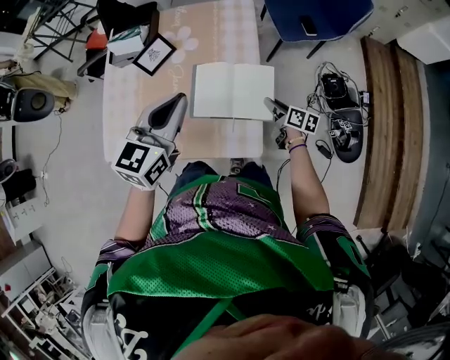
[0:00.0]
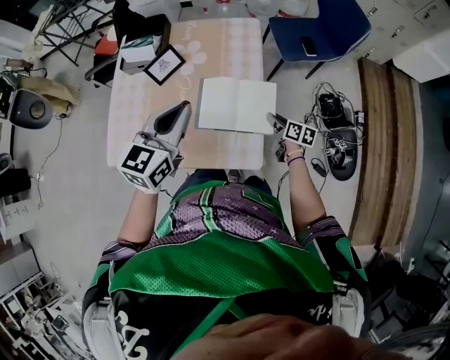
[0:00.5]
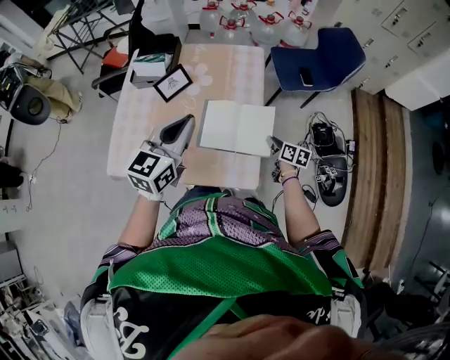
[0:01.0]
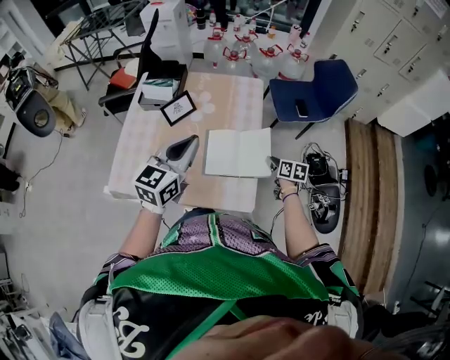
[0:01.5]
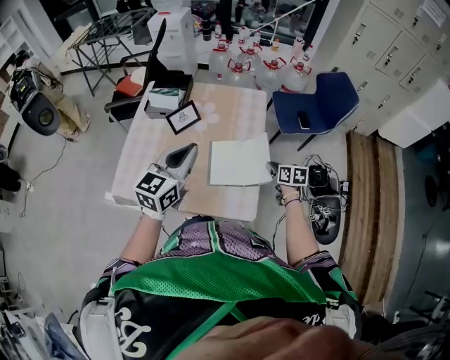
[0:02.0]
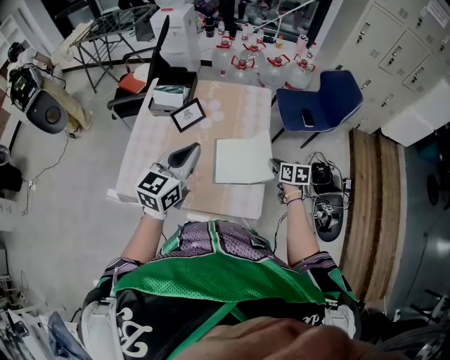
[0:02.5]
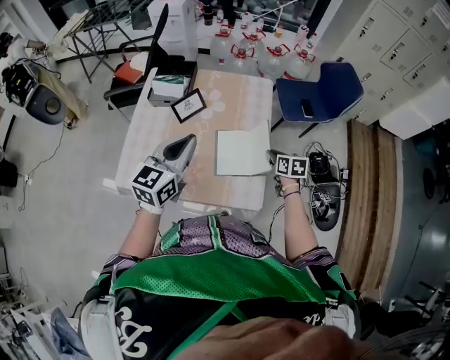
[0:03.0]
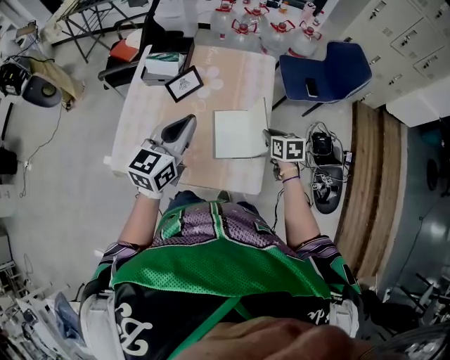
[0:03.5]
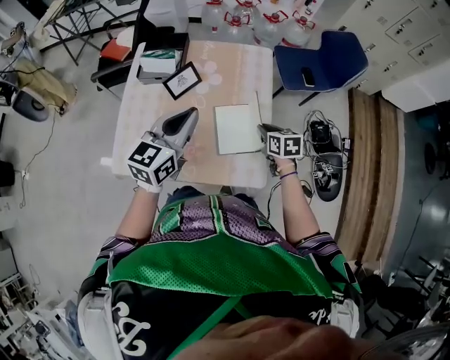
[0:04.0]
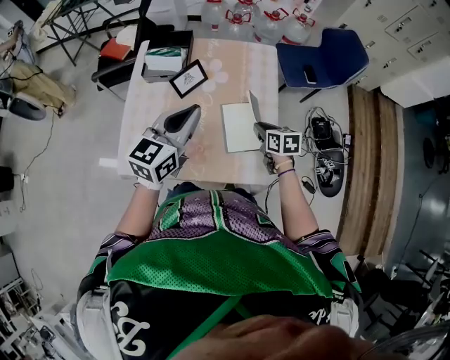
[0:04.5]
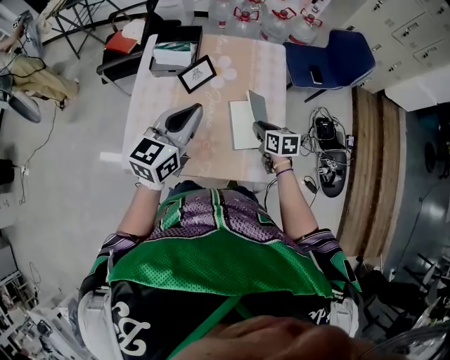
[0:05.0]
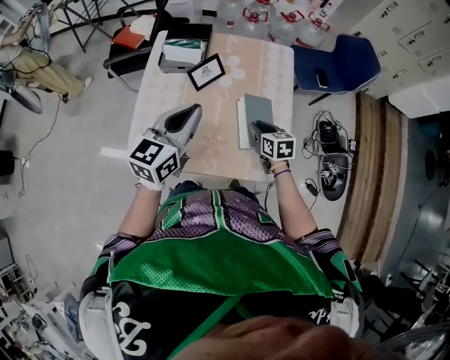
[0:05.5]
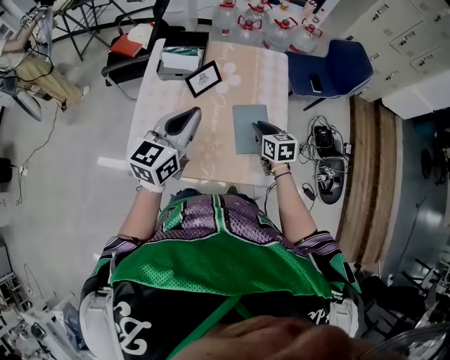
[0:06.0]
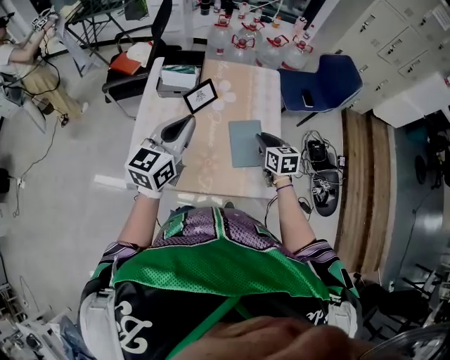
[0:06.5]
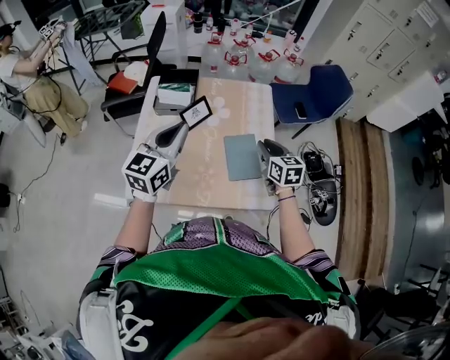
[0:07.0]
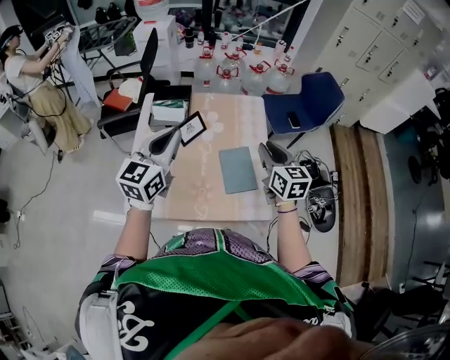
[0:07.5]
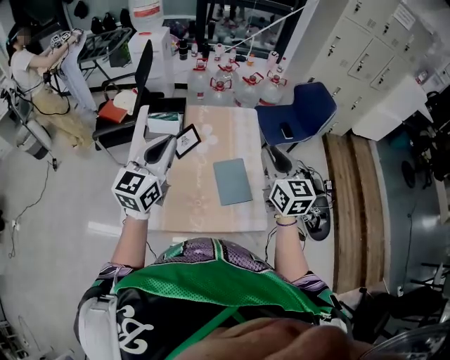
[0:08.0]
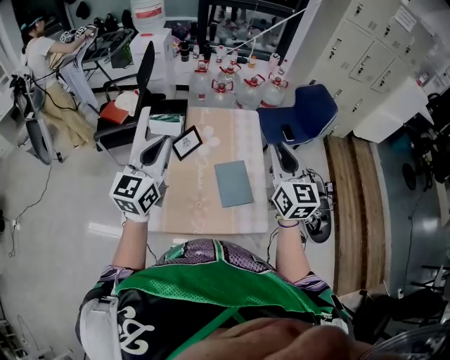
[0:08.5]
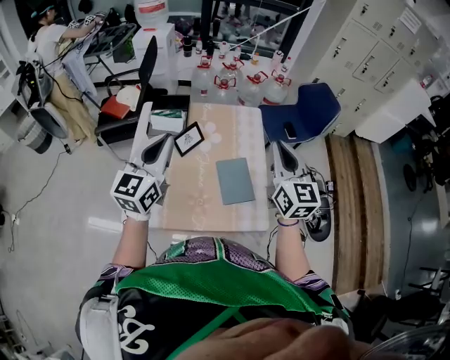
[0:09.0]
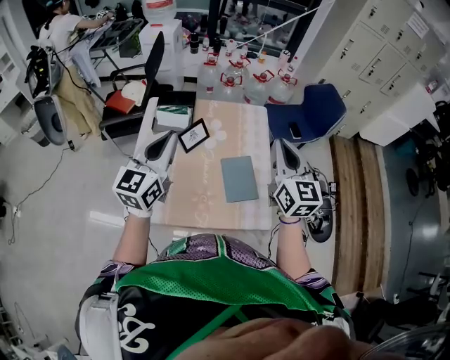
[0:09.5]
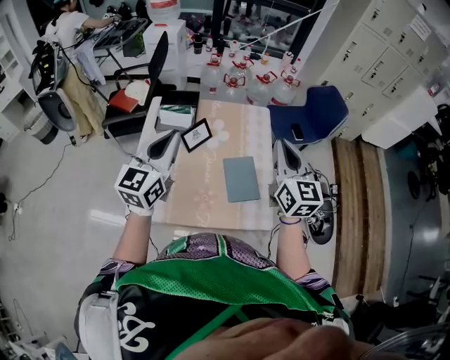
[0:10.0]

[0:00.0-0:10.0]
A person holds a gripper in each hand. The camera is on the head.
0:00.0 to 0:02.0: The right gripper moves upward, approximately 10 cm, rotates about 30 degrees, and closes its fingers. The left gripper travels to the left and upward by approximately 10 cm.
0:02.0 to 0:04.0: The right gripper is displaced to the left by some 10 cm; the left gripper shifts by about 5 cm.
0:04.0 to 0:06.0: The two grippers go roughly 10 cm to the left.
0:06.0 to 0:08.0: The left gripper is displaced upward by approximately 10 cm, while the right gripper travels upward by some 25 cm, and swivels approximately 30 degrees.
0:08.0 to 0:10.0: There are only small adjustments of the grippers.

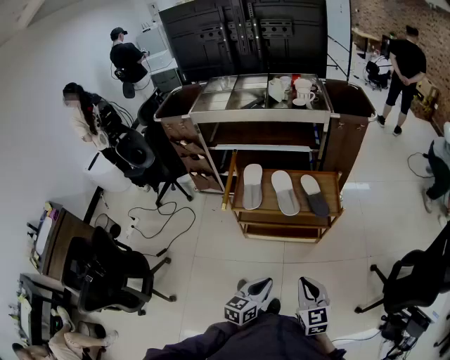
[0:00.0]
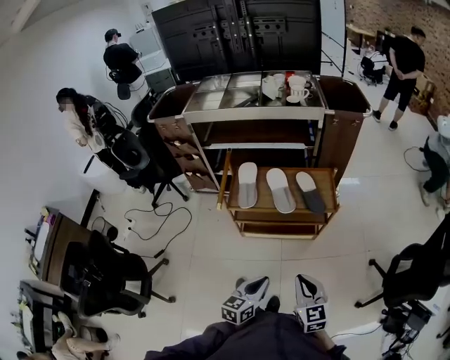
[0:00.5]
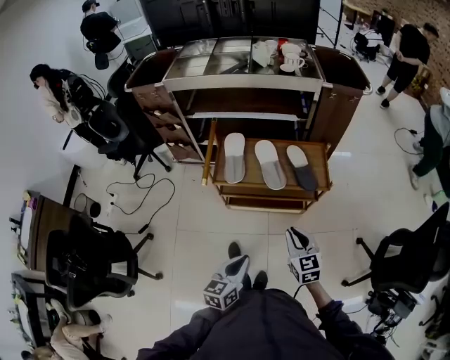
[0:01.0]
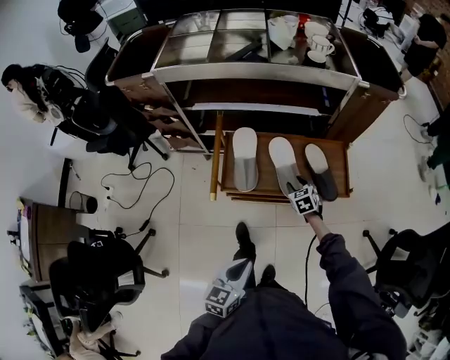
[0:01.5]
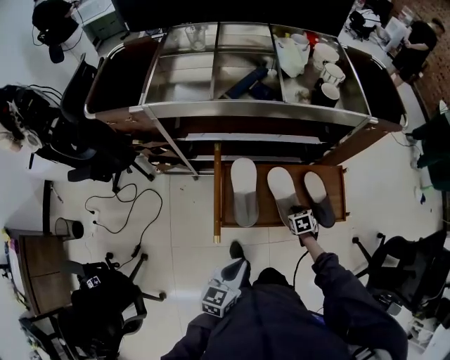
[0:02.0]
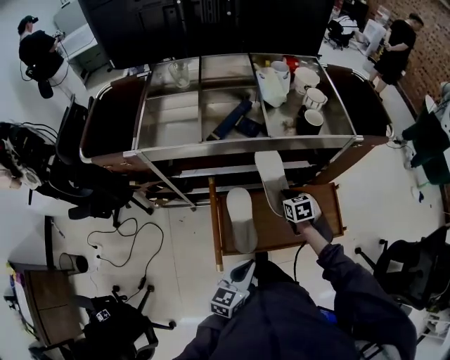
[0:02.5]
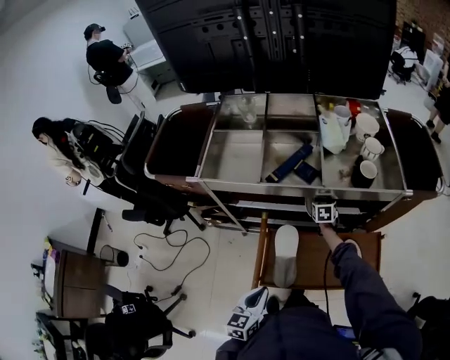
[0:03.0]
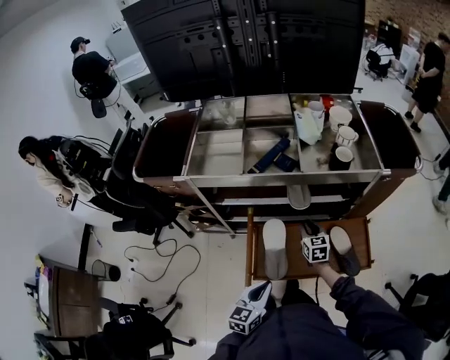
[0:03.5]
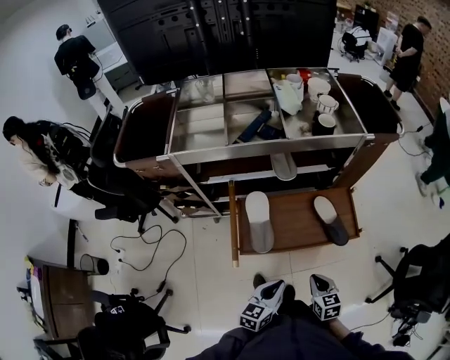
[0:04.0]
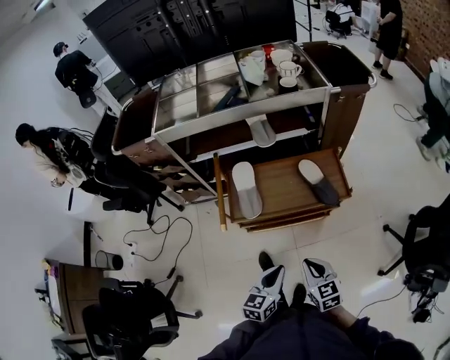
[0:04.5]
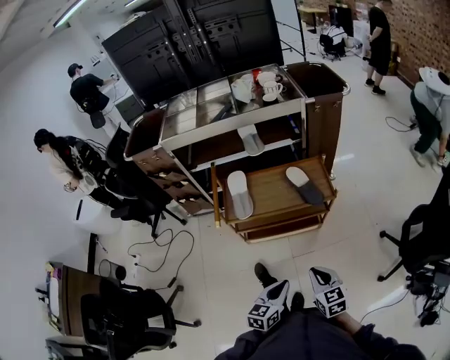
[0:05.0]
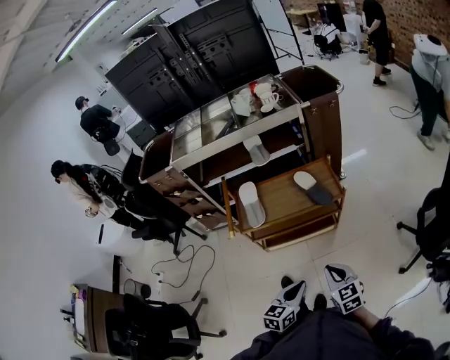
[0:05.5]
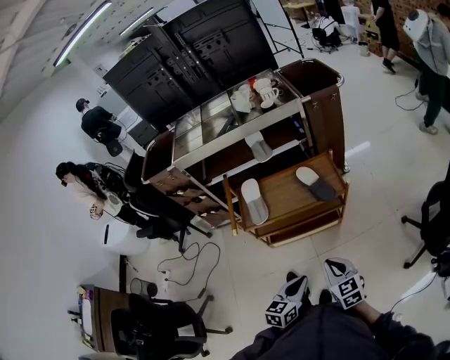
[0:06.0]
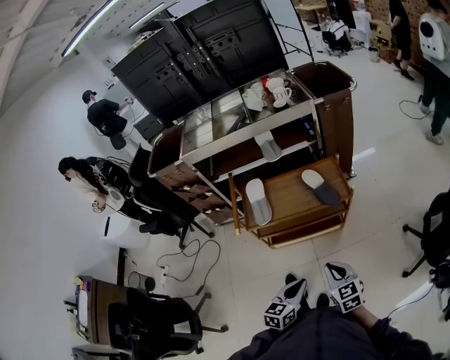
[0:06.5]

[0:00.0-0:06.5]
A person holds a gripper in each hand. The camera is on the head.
0:00.0 to 0:02.0: The left gripper goes roughly 35 cm forward and to the left. Meanwhile the right gripper moves forward and downward, approximately 50 cm, angles its fingers downward, by roughly 50 degrees, and opens and closes again.
0:02.0 to 0:04.5: The right gripper moves backward and upward, roughly 35 cm, and points its fingers roughly 30 degrees further upward. Meanwhile the left gripper travels to the right and backward by some 15 cm.
0:04.5 to 0:06.5: The two grippers go roughly 15 cm backward and to the right.

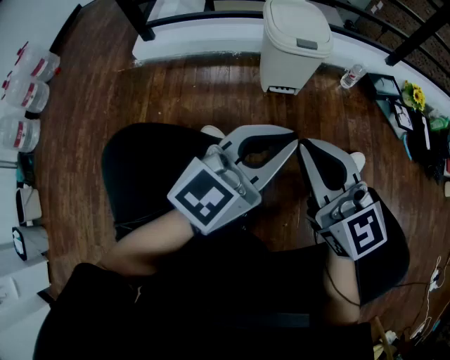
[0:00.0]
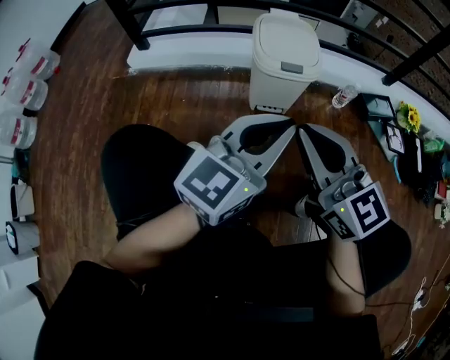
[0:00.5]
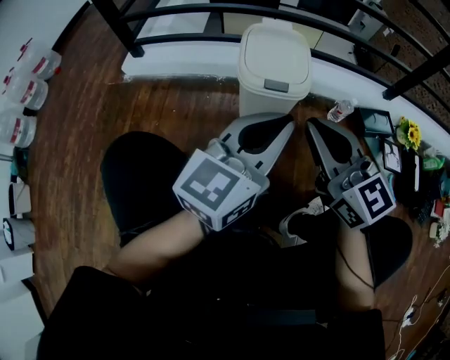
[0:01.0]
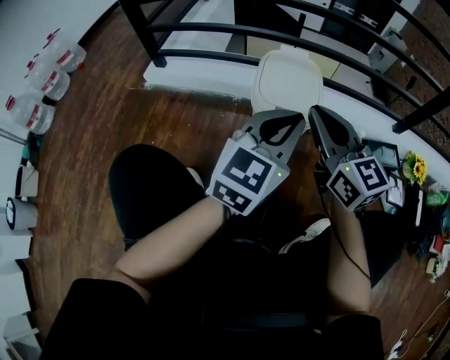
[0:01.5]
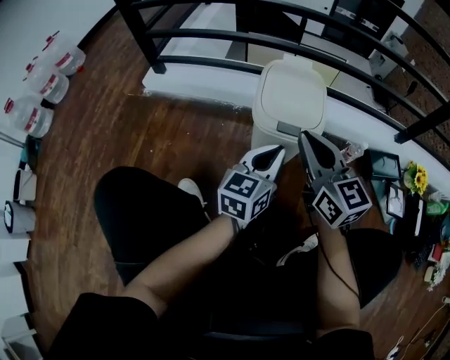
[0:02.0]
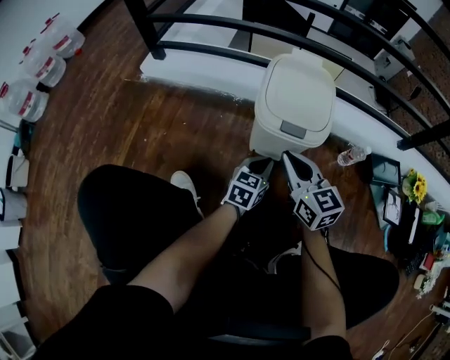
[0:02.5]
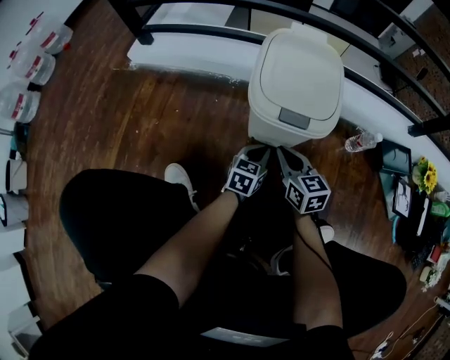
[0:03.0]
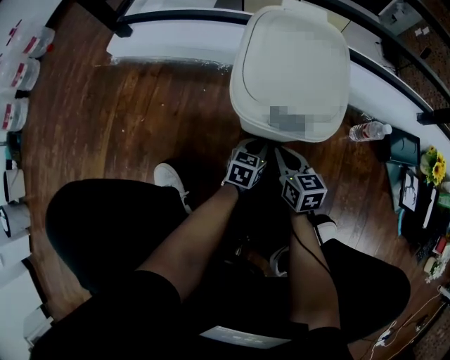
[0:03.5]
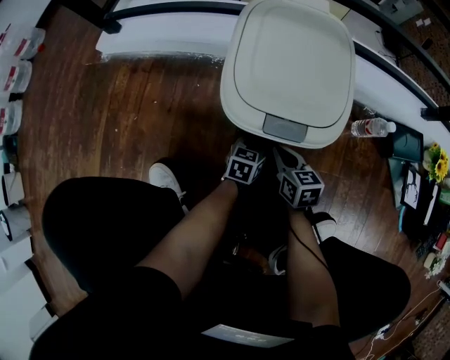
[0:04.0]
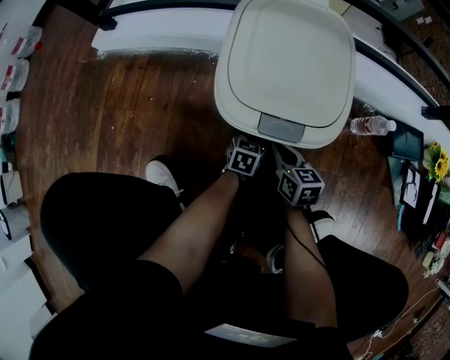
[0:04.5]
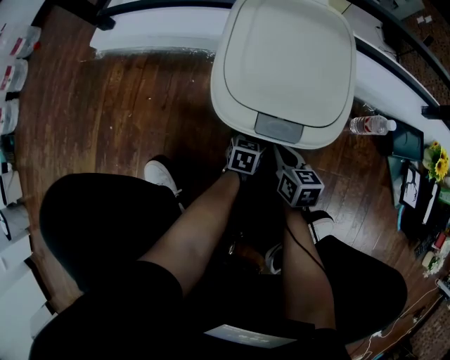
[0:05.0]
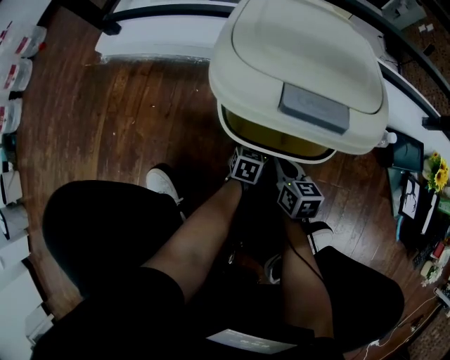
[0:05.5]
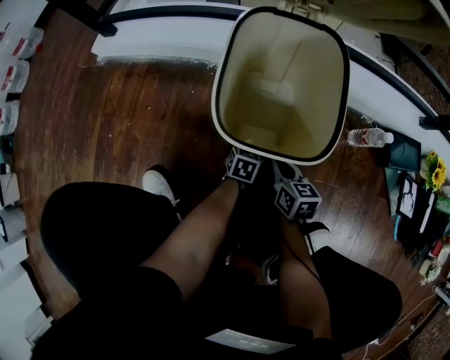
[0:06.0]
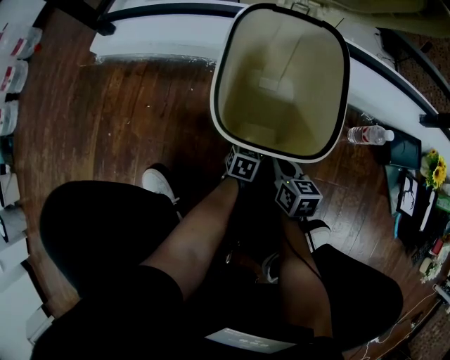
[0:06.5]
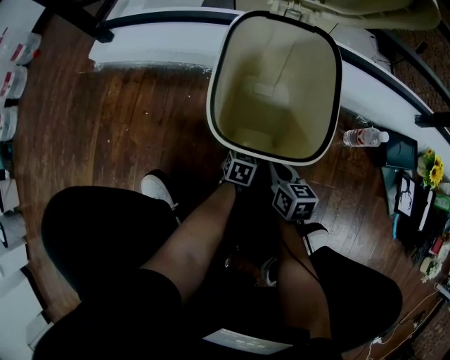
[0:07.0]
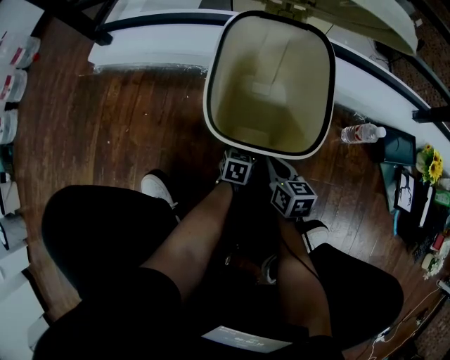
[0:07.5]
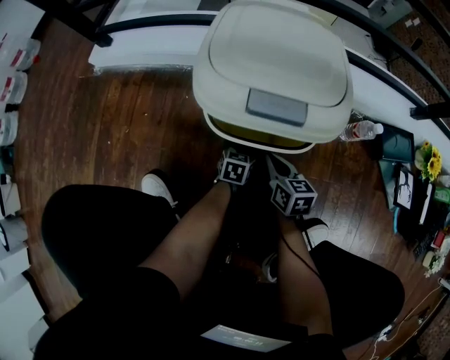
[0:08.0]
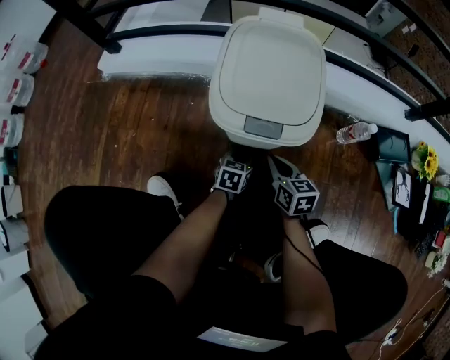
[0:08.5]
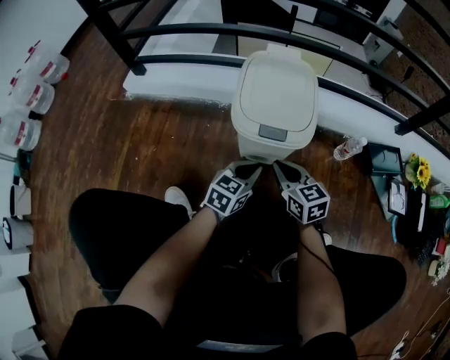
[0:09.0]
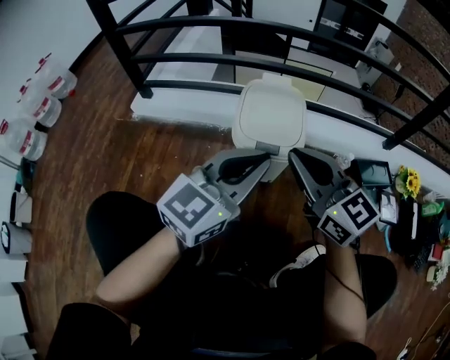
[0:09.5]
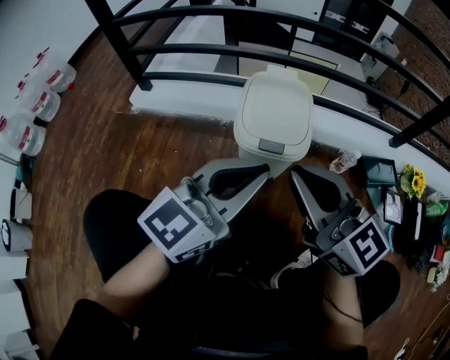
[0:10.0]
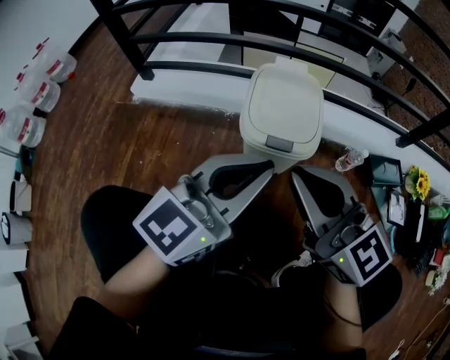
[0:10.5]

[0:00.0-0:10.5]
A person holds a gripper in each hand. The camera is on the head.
0:00.0 to 0:02.0: The two grippers go about 35 cm forward and to the right. The left gripper rotates roughly 30 degrees.
0:02.0 to 0:04.0: The two grippers go about 40 cm downward. The left gripper rotates about 30 degrees; the right gripper points its fingers about 30 degrees further downward.
0:04.0 to 0:06.5: The left gripper shifts about 5 cm downward.
0:06.5 to 0:08.5: The left gripper heads upward, covering approximately 5 cm, while the right gripper moves some 5 cm.
0:08.5 to 0:10.5: Both grippers move upward, approximately 50 cm. The right gripper angles its fingers upward, by about 30 degrees; the left gripper tilts its fingers about 50 degrees upward.
